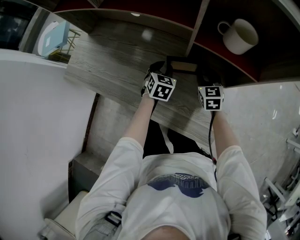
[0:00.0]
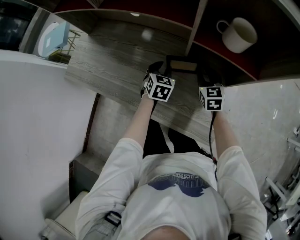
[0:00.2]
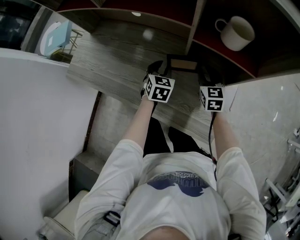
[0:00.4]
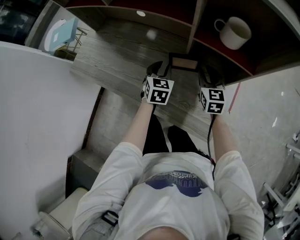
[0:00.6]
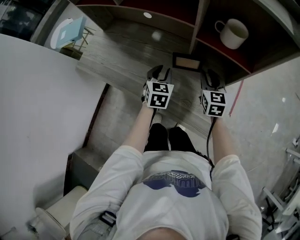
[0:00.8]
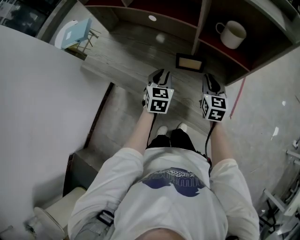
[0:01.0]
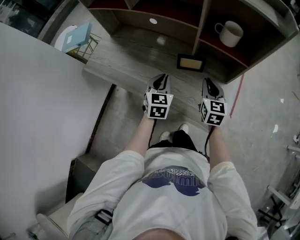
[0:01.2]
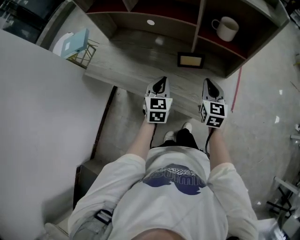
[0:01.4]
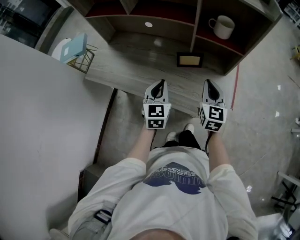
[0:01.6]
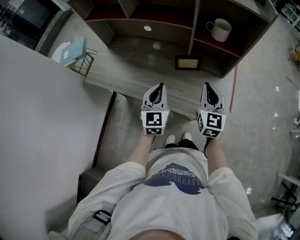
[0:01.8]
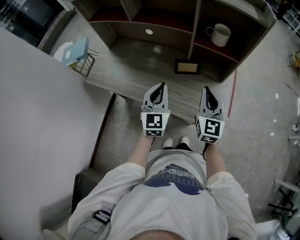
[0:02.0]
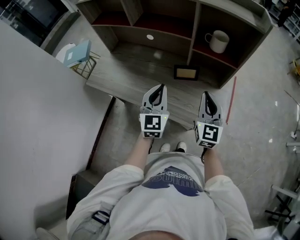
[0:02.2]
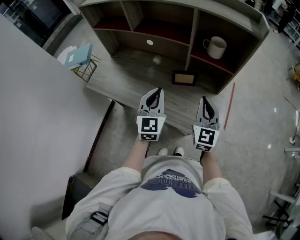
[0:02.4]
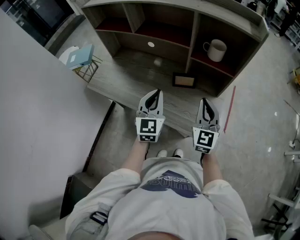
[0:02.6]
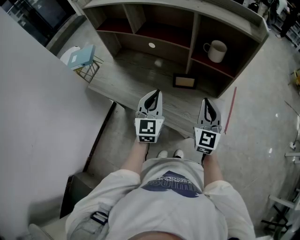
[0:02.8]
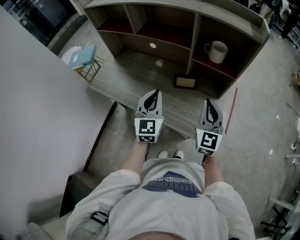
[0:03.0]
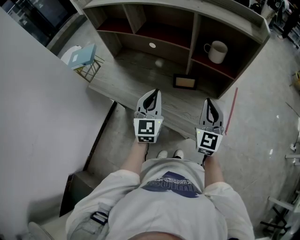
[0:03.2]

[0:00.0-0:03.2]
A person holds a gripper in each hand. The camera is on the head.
0:00.0 to 0:01.6: The right gripper moves backward and upward, roughly 25 cm, turns by roughly 20 degrees, and closes; the left gripper is displaced upward, backward and to the left by roughly 30 cm, rotates roughly 30 degrees, and closes up.
0:01.6 to 0:03.2: Both grippers move upward, about 10 cm.

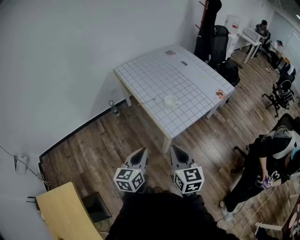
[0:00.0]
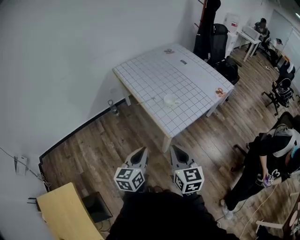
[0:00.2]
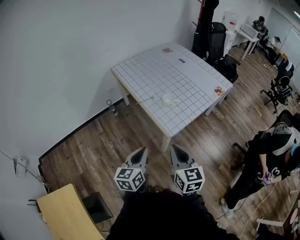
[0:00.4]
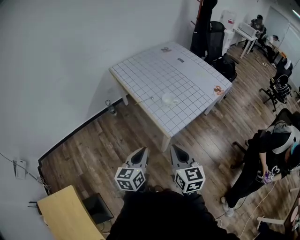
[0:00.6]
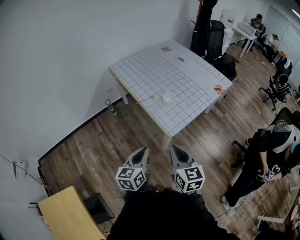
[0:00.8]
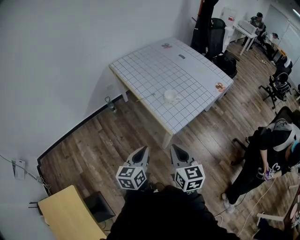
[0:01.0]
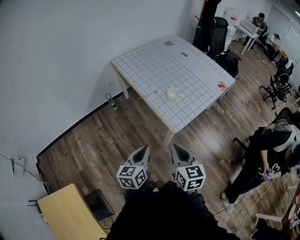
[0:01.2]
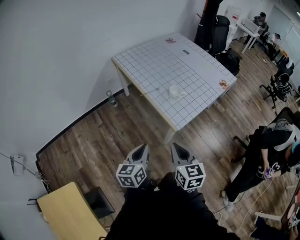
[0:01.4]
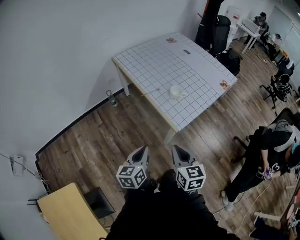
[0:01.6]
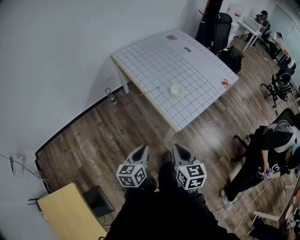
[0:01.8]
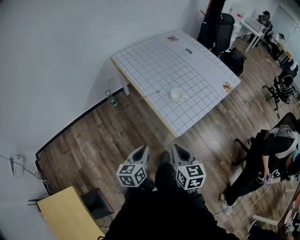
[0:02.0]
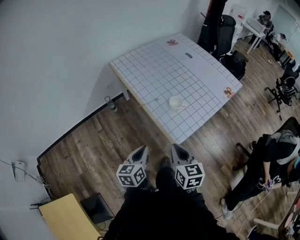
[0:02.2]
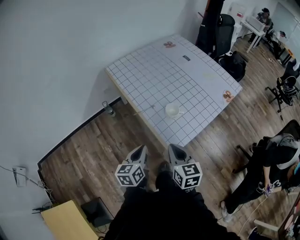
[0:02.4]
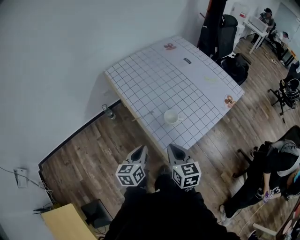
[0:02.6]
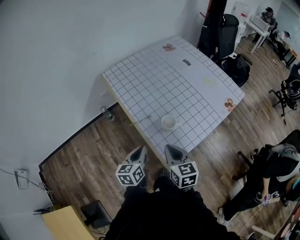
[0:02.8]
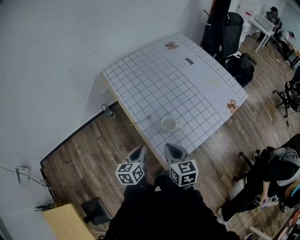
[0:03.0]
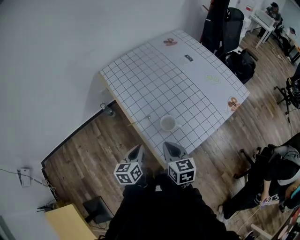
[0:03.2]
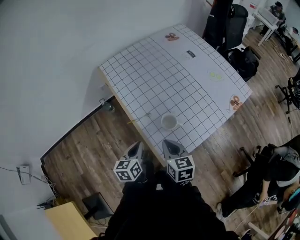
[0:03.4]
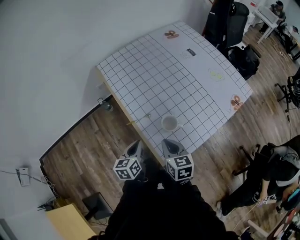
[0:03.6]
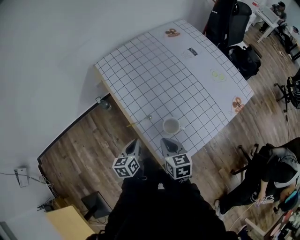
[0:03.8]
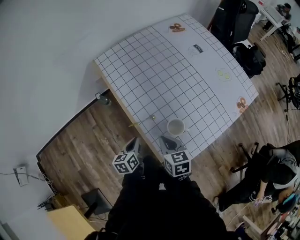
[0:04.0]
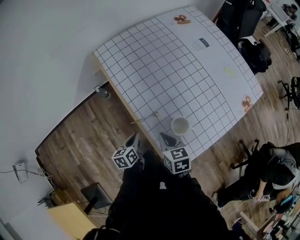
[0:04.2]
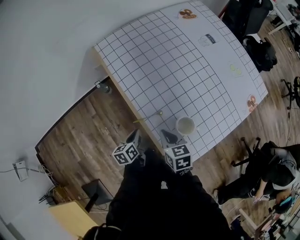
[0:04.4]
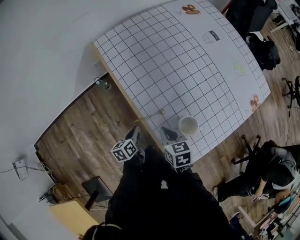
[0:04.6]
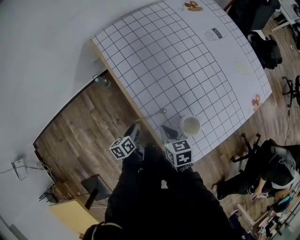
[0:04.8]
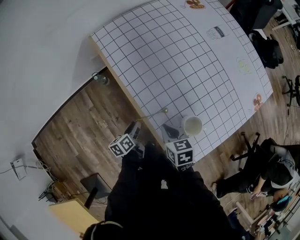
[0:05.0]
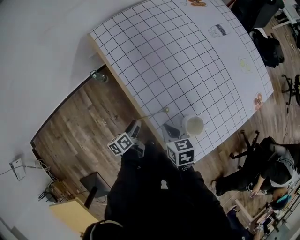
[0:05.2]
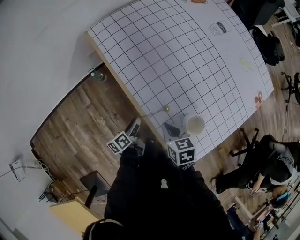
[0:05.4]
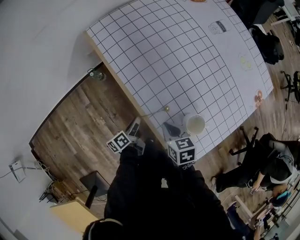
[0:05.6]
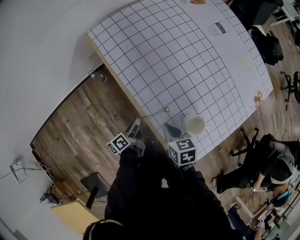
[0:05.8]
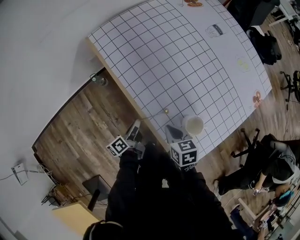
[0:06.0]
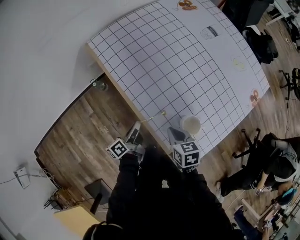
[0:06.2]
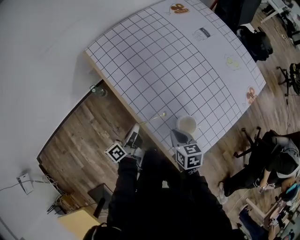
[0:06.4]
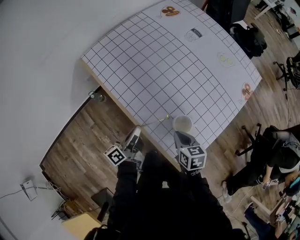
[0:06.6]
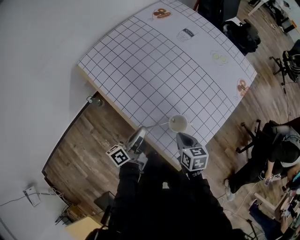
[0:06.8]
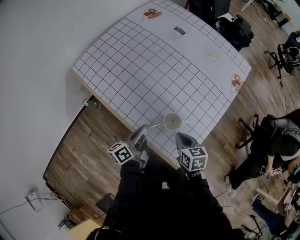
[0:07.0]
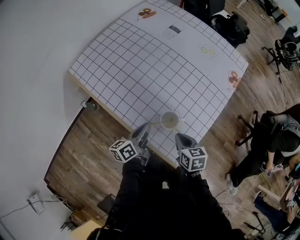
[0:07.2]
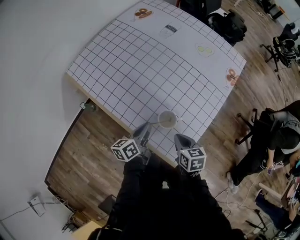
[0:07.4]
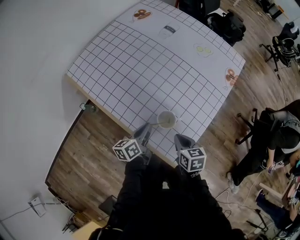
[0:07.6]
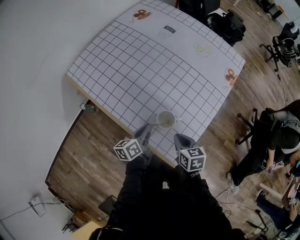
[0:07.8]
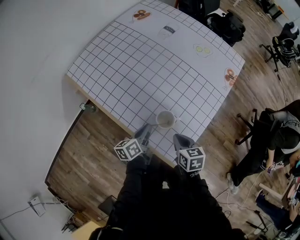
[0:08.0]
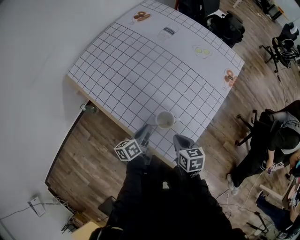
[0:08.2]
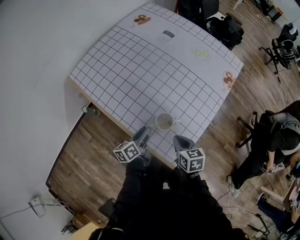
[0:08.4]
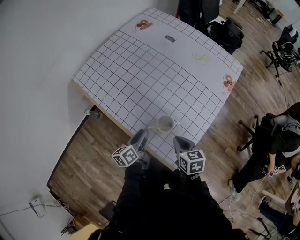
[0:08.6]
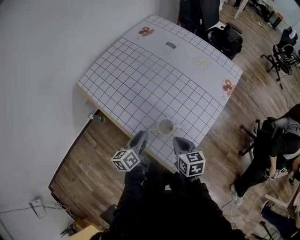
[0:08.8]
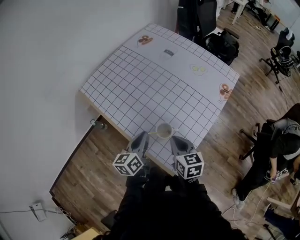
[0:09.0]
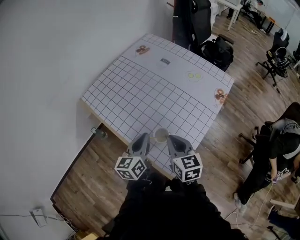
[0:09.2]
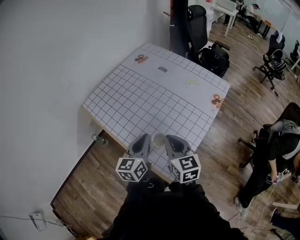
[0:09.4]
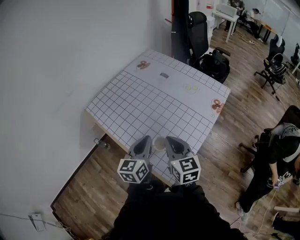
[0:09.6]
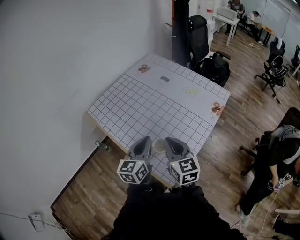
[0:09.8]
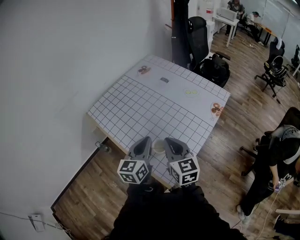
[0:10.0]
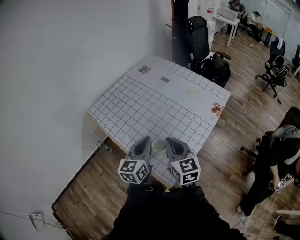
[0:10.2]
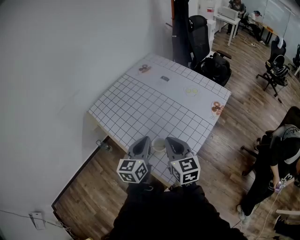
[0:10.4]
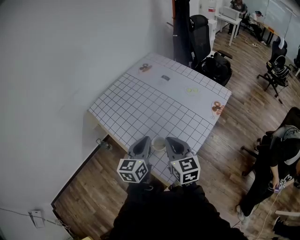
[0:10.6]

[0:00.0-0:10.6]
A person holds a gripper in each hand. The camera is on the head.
0:00.0 to 0:01.6: Both grippers travel together to the left and downward, approximately 10 cm.
0:01.6 to 0:03.0: The two grippers go some 30 cm forward.
0:03.0 to 0:04.6: The two grippers go roughly 30 cm downward, forward and to the left. The right gripper changes its angle by some 20 degrees. Meanwhile the left gripper swivels roughly 30 degrees.
0:04.6 to 0:06.0: The left gripper rotates approximately 30 degrees, and opens, then closes once more.
0:06.0 to 0:07.6: The right gripper moves to the right, about 15 cm, and rotates approximately 20 degrees; the left gripper heads to the right and upward, covering approximately 25 cm, and turns by some 40 degrees.
0:07.6 to 0:09.0: The two grippers go roughly 15 cm upward. The left gripper changes its angle by some 20 degrees, and opens, then closes once more.
0:09.0 to 0:10.6: The left gripper heads upward and to the right, covering some 15 cm, and swivels some 20 degrees; the right gripper is displaced upward by roughly 15 cm.

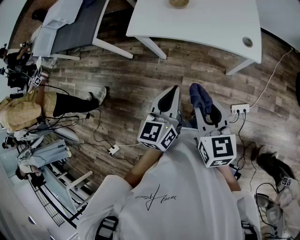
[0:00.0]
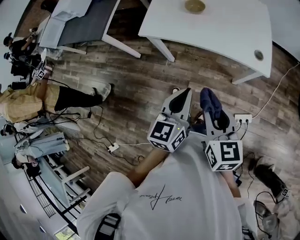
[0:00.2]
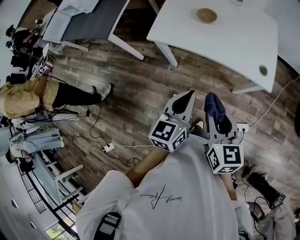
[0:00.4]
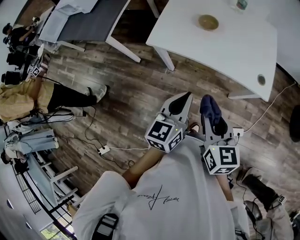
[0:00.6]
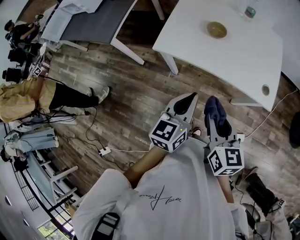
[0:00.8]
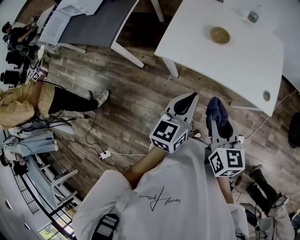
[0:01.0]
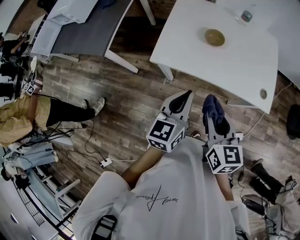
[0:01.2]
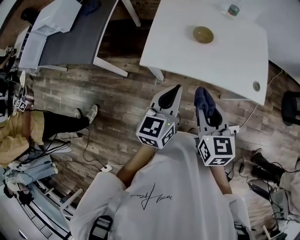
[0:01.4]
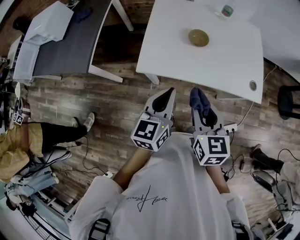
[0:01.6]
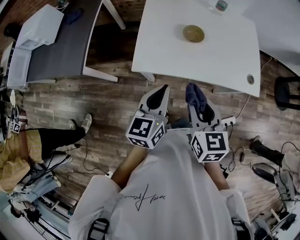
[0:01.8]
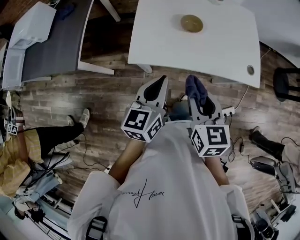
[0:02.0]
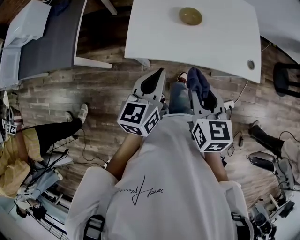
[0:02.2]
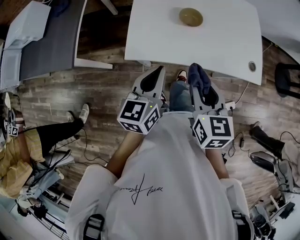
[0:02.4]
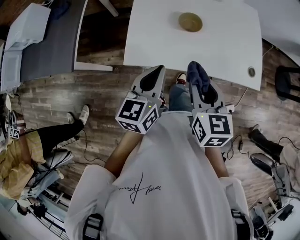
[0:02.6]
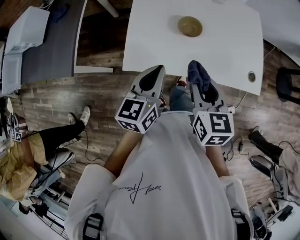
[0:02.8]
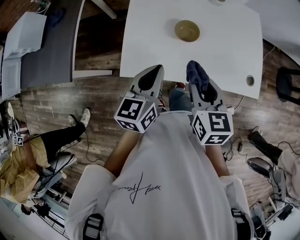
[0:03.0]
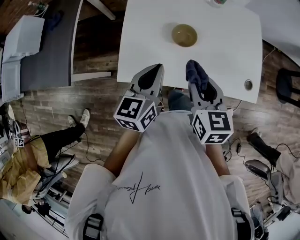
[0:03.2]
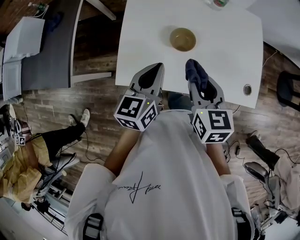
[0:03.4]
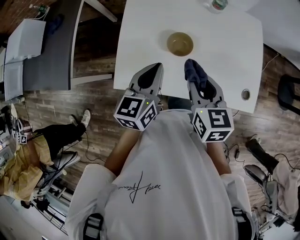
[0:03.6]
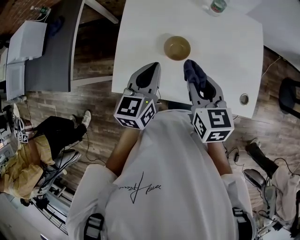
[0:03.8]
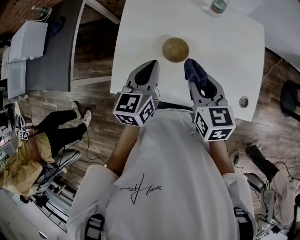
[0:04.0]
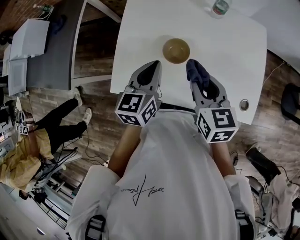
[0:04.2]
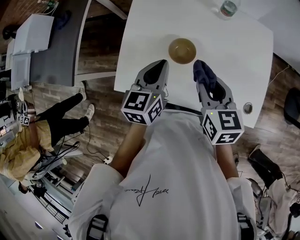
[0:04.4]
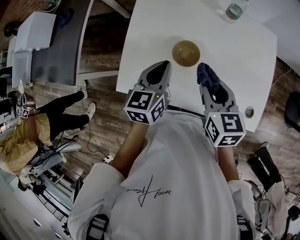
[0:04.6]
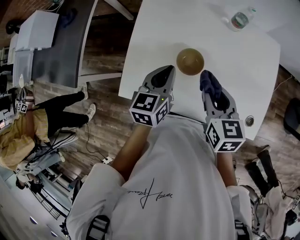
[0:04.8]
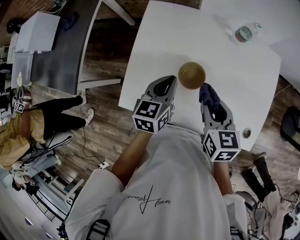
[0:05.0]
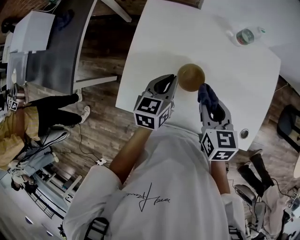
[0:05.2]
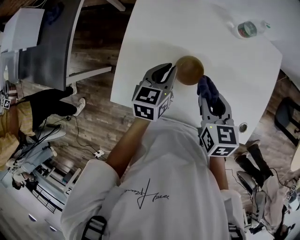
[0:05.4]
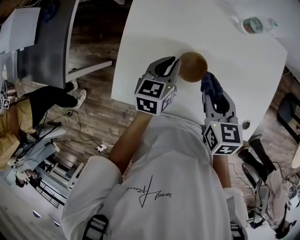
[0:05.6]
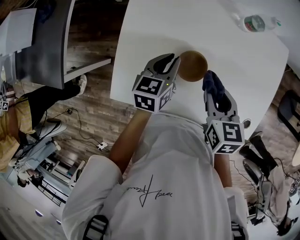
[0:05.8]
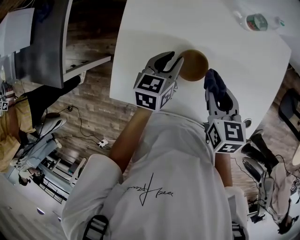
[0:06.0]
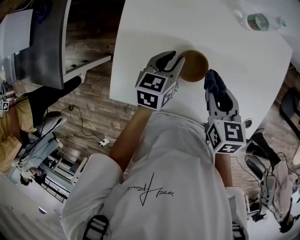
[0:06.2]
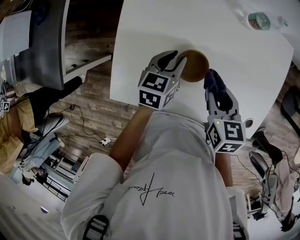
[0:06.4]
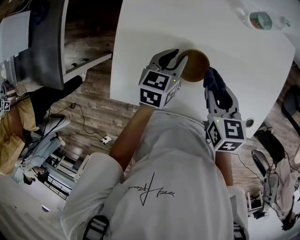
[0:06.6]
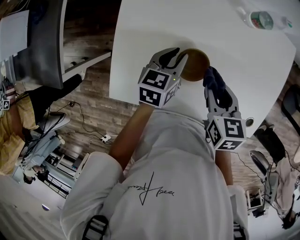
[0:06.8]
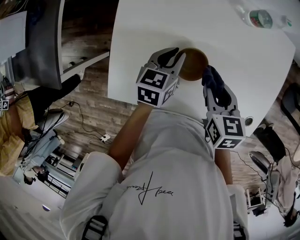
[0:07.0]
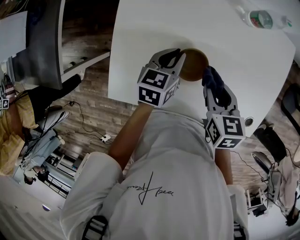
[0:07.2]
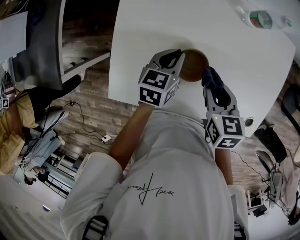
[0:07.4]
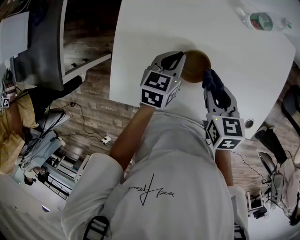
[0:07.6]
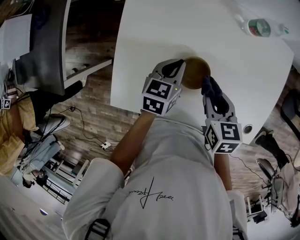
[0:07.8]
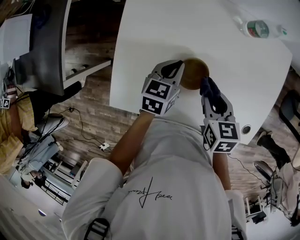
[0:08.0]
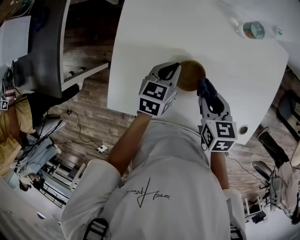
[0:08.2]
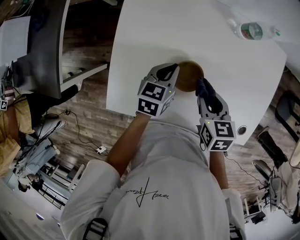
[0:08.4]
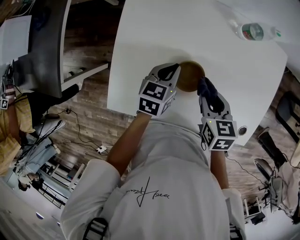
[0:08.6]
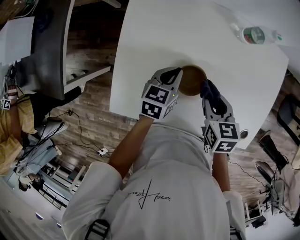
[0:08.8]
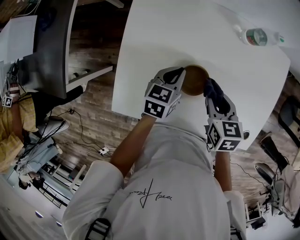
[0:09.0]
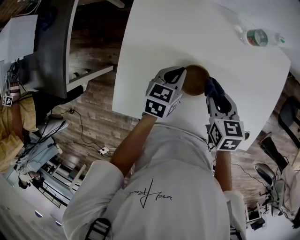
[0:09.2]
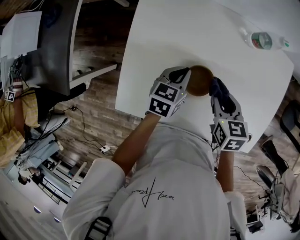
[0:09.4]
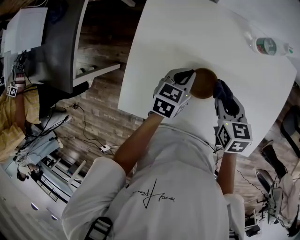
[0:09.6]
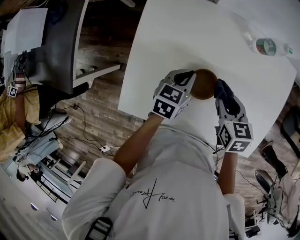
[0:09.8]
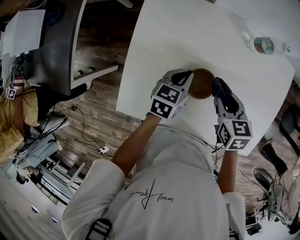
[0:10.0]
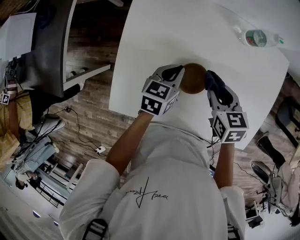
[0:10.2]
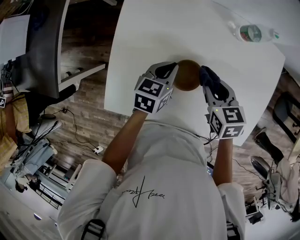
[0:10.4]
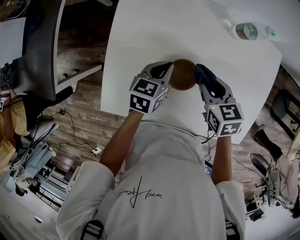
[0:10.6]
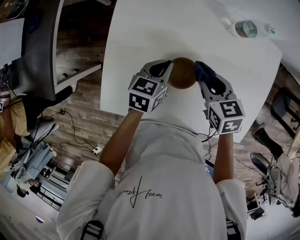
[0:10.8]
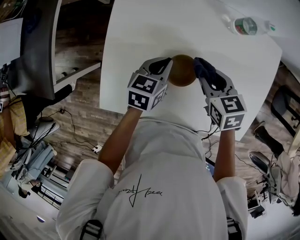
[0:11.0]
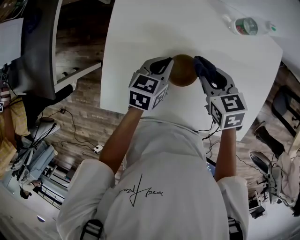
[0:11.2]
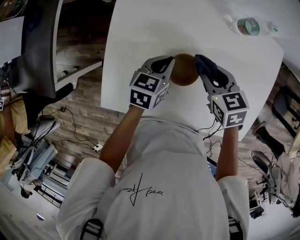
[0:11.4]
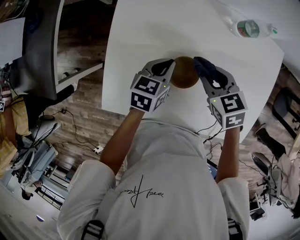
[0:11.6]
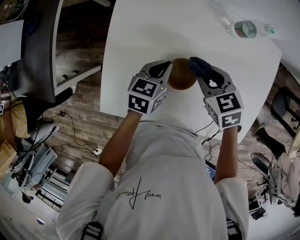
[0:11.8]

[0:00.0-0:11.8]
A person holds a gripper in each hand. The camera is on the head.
0:00.0 to 0:01.4: Both grippers travel together forward and to the left, some 20 cm.
0:01.4 to 0:03.0: Both grippers move forward, roughly 15 cm.
0:03.0 to 0:04.4: The two grippers go approximately 15 cm forward and to the right.
0:04.4 to 0:06.0: Both grippers travel together downward and forward, approximately 15 cm. The left gripper opens up.
0:06.0 to 0:07.4: The left gripper closes up.
0:07.4 to 0:10.4: There are only small adjustments of the grippers.
0:10.4 to 0:11.8: The grippers stay close to where they were, moving slightly.
